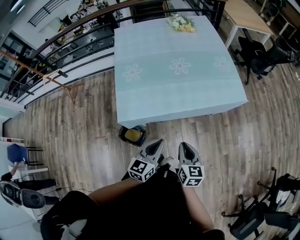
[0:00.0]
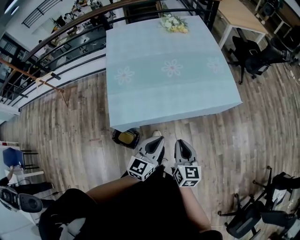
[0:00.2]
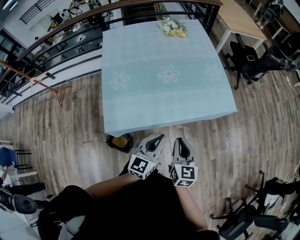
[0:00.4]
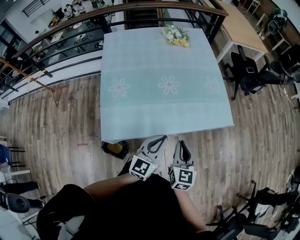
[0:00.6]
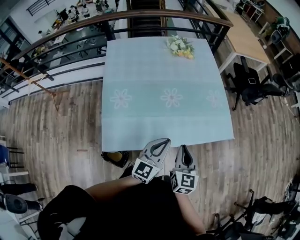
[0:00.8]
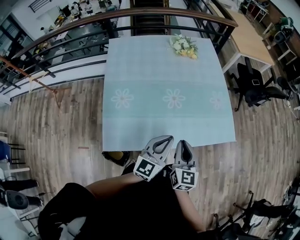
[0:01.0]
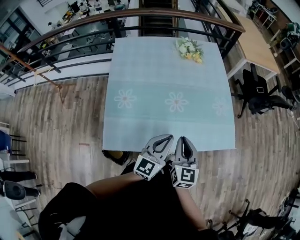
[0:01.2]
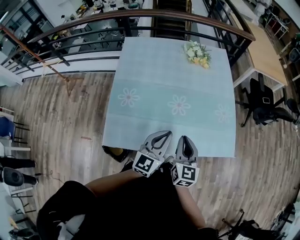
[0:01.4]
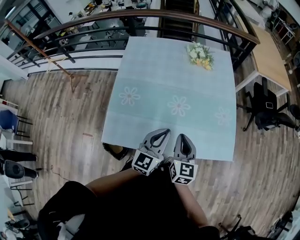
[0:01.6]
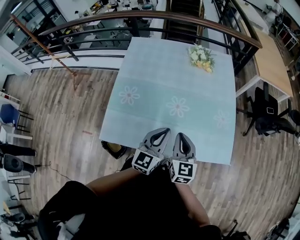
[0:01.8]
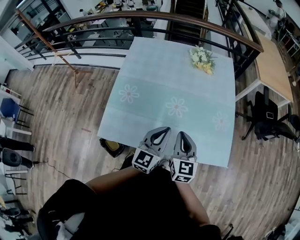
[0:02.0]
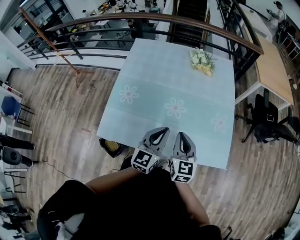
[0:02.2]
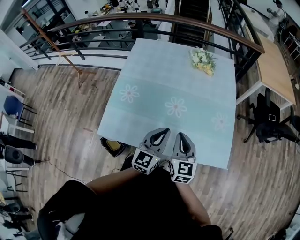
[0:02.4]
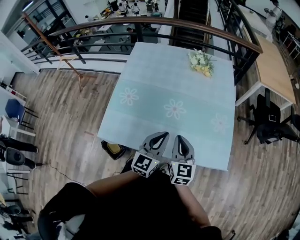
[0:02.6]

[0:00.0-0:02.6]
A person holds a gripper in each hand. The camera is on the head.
0.0 to 1.2 s: The grippers both shift forward by roughly 30 cm.
1.2 to 2.6 s: Both grippers move to the right, roughly 10 cm.

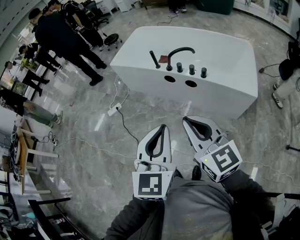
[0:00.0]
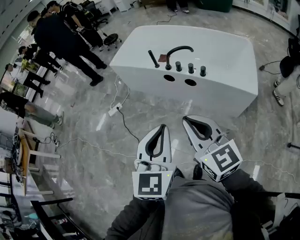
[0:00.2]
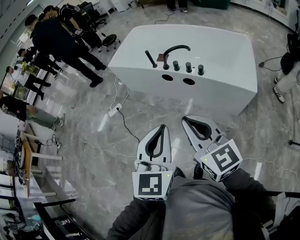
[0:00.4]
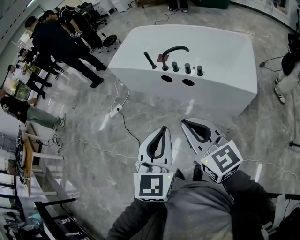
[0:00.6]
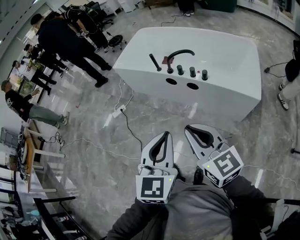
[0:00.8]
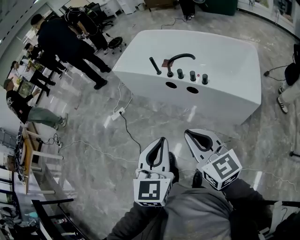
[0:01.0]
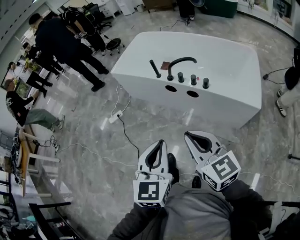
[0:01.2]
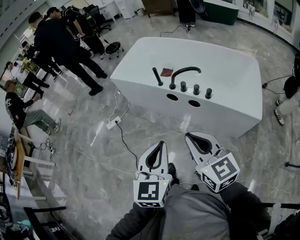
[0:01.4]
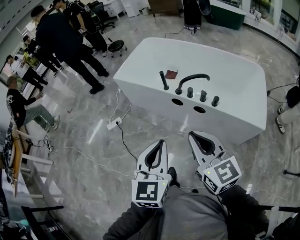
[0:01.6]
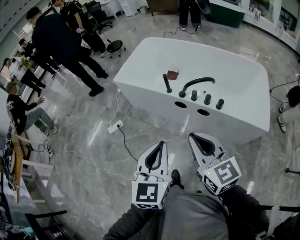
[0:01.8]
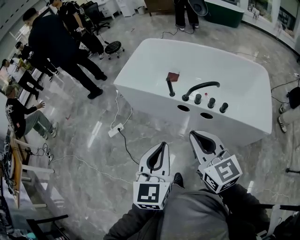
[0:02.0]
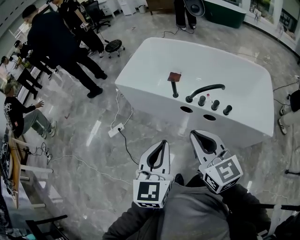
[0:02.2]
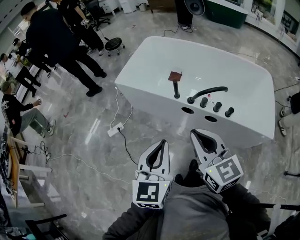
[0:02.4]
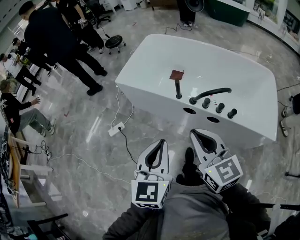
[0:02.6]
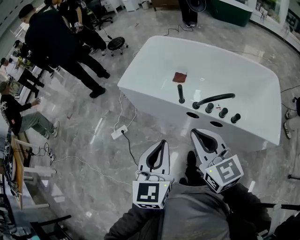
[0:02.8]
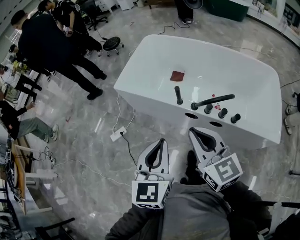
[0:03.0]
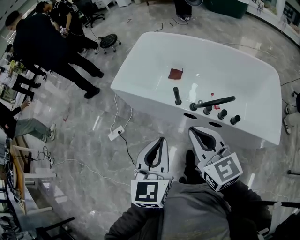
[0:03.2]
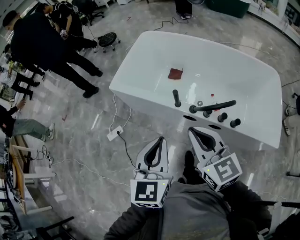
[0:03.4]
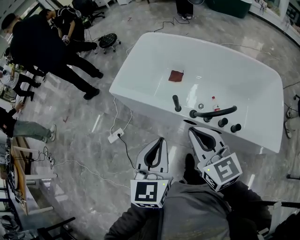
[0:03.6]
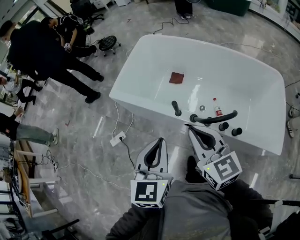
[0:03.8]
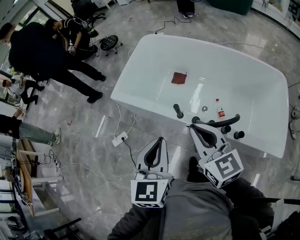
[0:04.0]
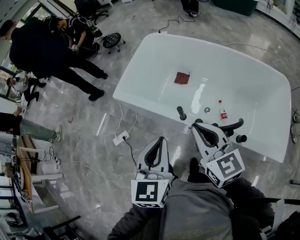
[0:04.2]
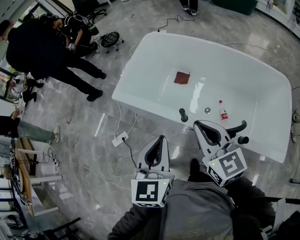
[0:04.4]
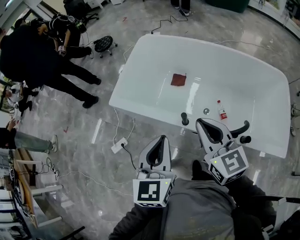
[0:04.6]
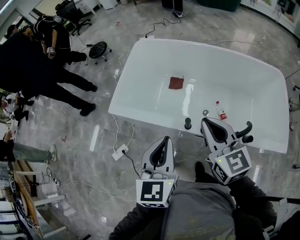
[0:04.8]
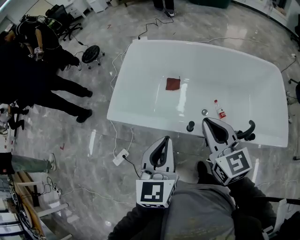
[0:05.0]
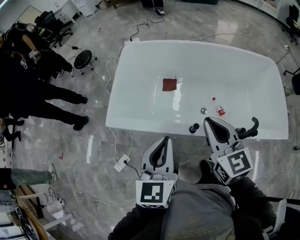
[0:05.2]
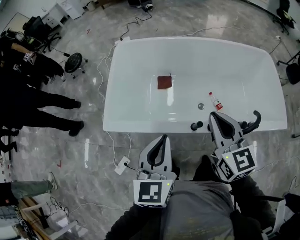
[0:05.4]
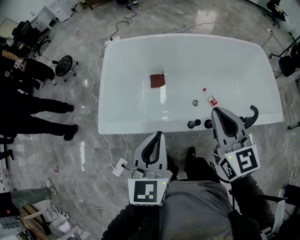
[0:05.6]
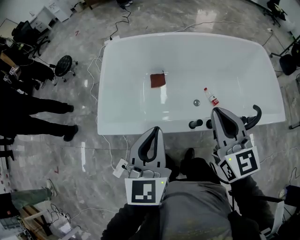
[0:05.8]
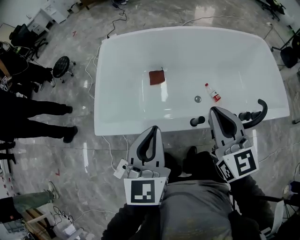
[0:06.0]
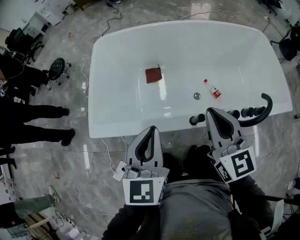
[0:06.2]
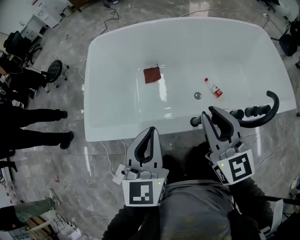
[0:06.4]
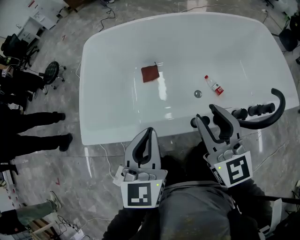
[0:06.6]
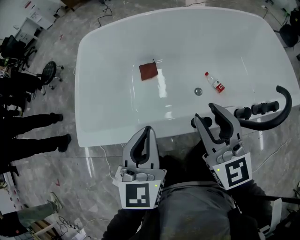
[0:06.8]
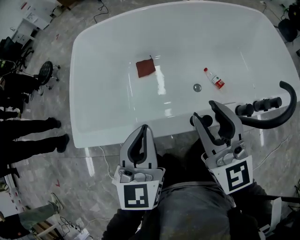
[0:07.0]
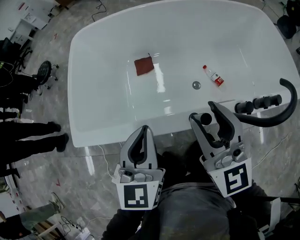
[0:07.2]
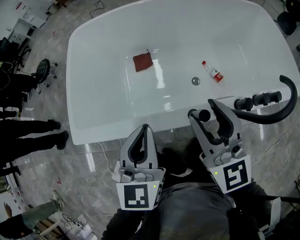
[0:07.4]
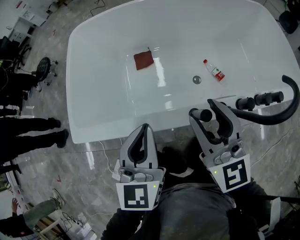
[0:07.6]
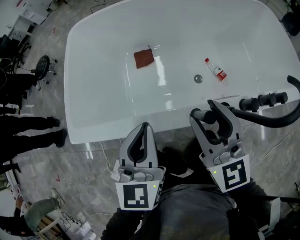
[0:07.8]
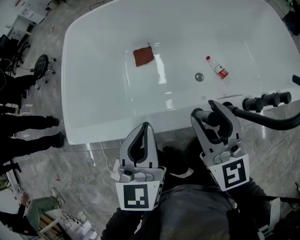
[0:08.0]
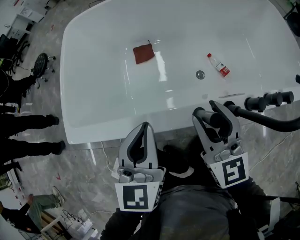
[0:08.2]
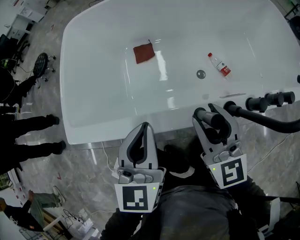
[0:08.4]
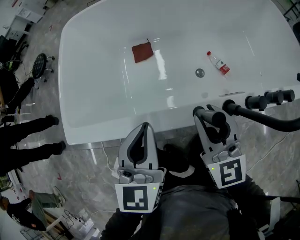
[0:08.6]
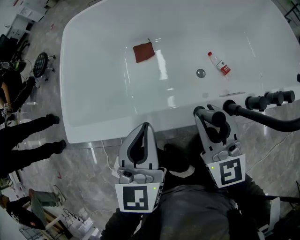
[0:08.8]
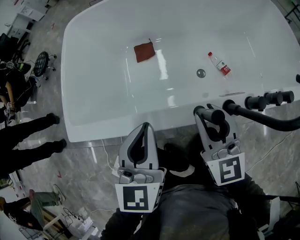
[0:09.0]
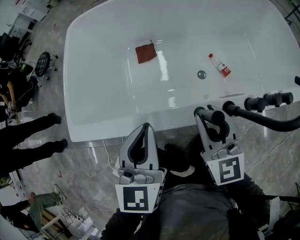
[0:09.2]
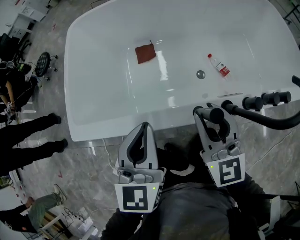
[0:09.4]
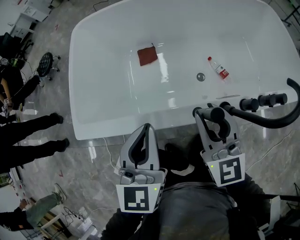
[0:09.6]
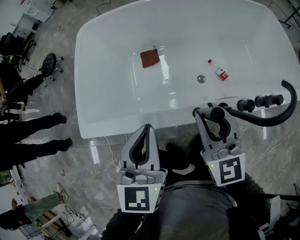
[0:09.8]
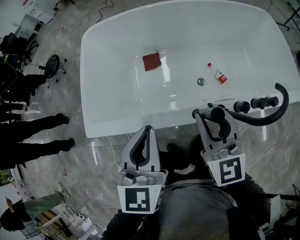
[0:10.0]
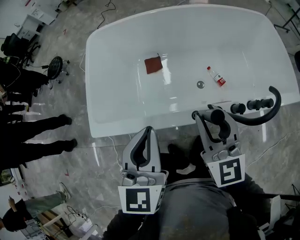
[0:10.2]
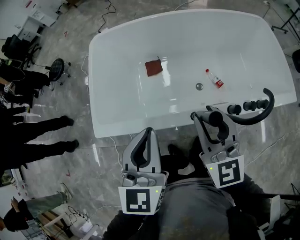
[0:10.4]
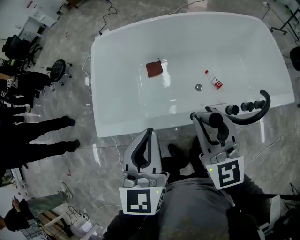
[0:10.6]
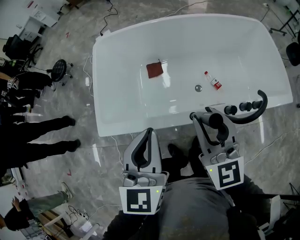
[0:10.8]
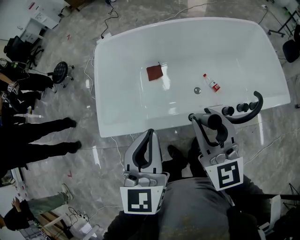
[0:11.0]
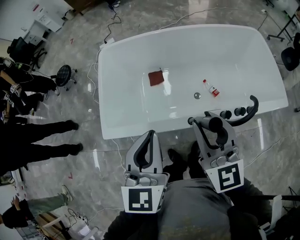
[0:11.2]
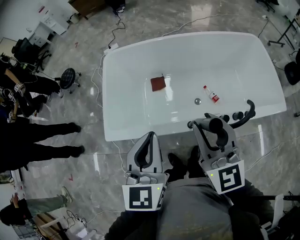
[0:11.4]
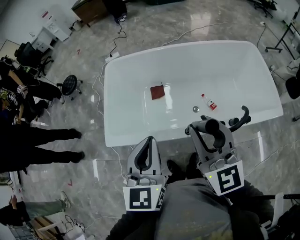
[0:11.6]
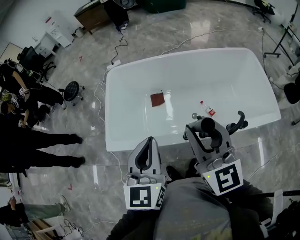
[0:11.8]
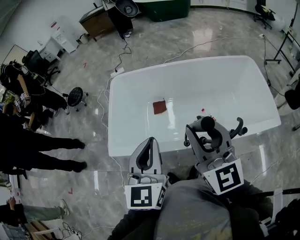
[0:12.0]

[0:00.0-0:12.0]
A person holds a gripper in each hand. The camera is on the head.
0.0 to 1.6 s: Both grippers move forward, some 15 cm.
1.6 to 3.0 s: The two grippers go approximately 25 cm forward.
3.0 to 4.4 s: The grippers both shift forward by approximately 20 cm.
4.4 to 6.0 s: The left gripper moves roughly 20 cm, and rotates about 30 degrees; the right gripper changes place by some 15 cm, and turns by about 40 degrees.
6.0 to 7.6 s: The grippers both shift downward by some 15 cm. The right gripper opens its fingers.
7.6 to 9.0 s: The right gripper is displaced downward by roughly 10 cm.
9.0 to 10.4 s: The two grippers go some 20 cm upward.
10.4 to 12.0 s: Both grippers move upward, some 20 cm.

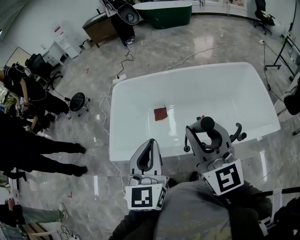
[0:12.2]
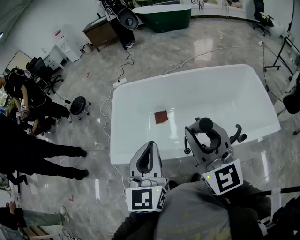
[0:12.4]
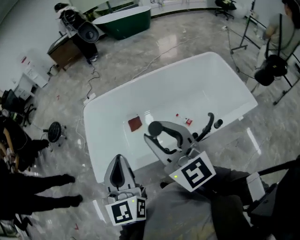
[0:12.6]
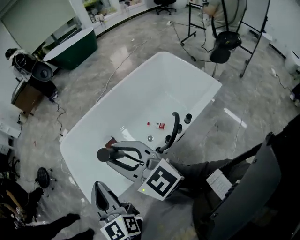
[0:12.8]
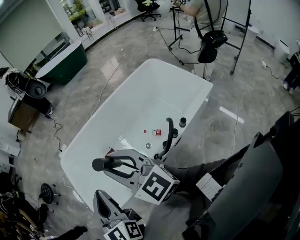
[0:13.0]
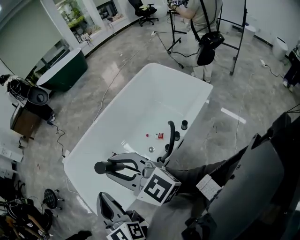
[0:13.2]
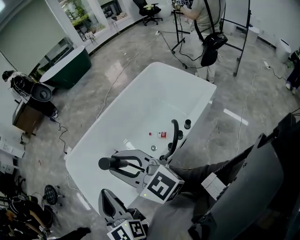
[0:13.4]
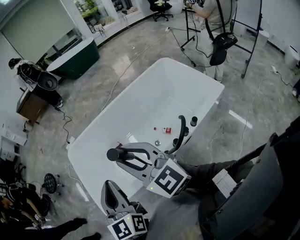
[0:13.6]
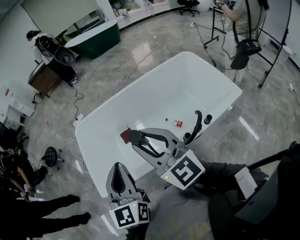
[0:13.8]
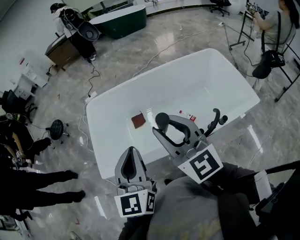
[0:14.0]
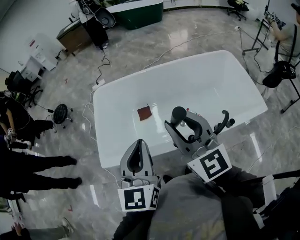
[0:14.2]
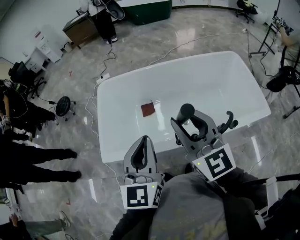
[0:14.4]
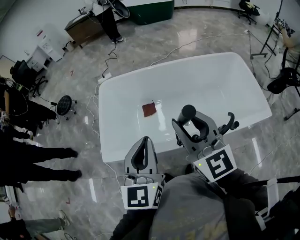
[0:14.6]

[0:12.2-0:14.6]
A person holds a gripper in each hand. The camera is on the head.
13.4 to 14.6 s: There are only small adjustments of the grippers.

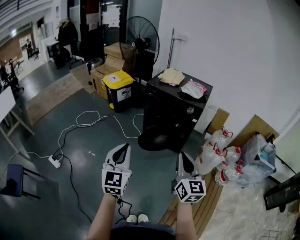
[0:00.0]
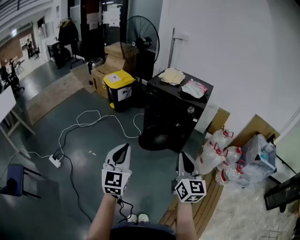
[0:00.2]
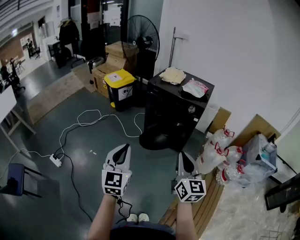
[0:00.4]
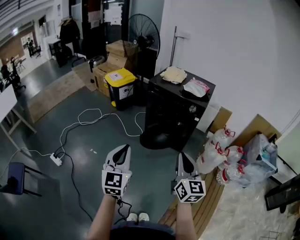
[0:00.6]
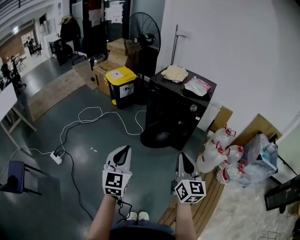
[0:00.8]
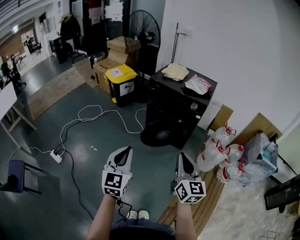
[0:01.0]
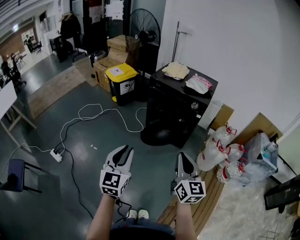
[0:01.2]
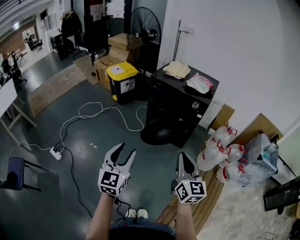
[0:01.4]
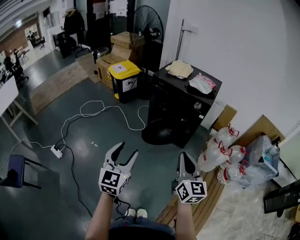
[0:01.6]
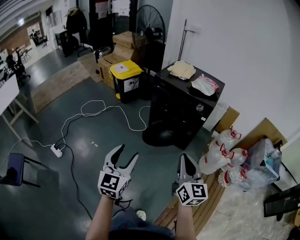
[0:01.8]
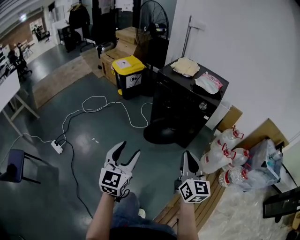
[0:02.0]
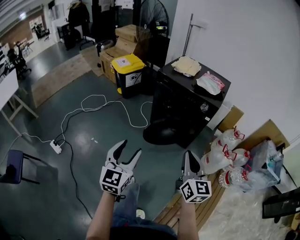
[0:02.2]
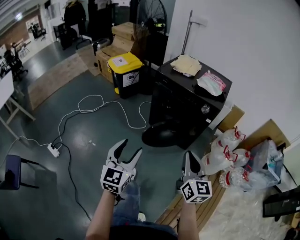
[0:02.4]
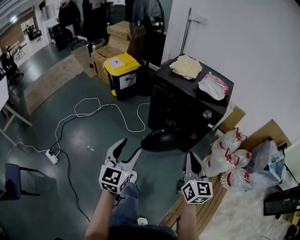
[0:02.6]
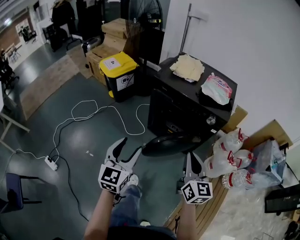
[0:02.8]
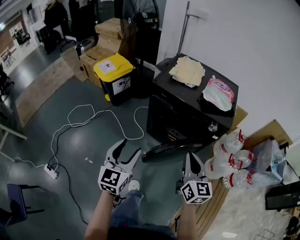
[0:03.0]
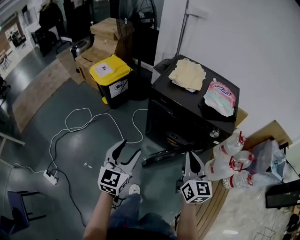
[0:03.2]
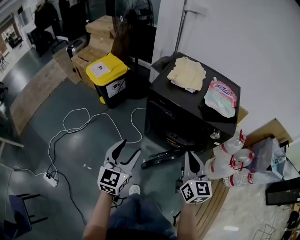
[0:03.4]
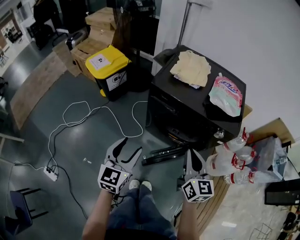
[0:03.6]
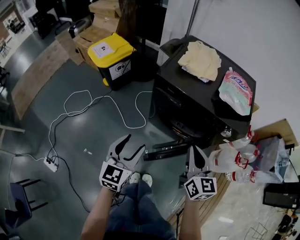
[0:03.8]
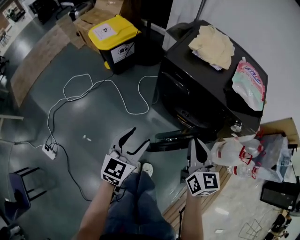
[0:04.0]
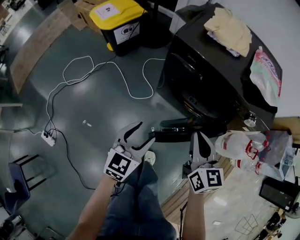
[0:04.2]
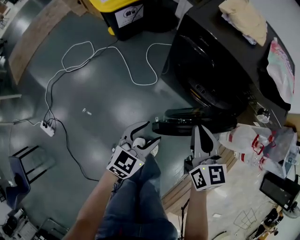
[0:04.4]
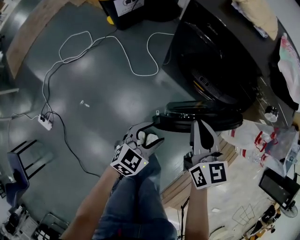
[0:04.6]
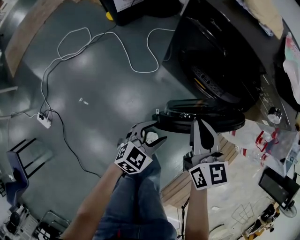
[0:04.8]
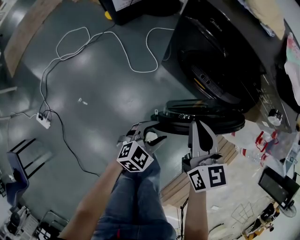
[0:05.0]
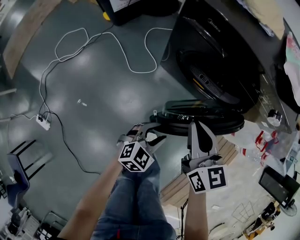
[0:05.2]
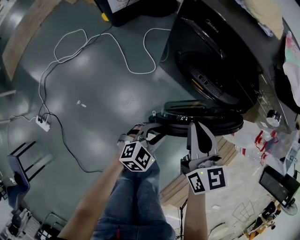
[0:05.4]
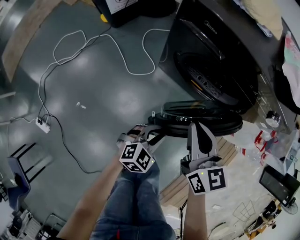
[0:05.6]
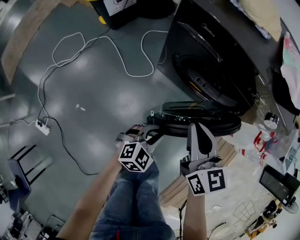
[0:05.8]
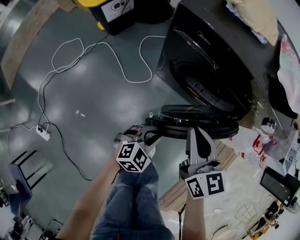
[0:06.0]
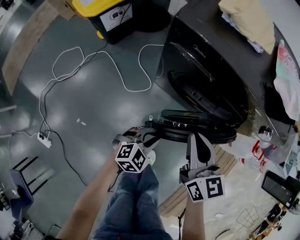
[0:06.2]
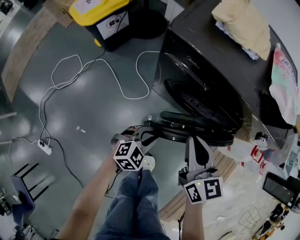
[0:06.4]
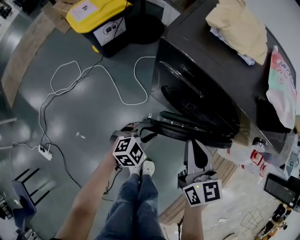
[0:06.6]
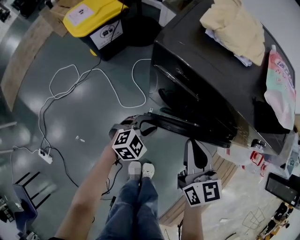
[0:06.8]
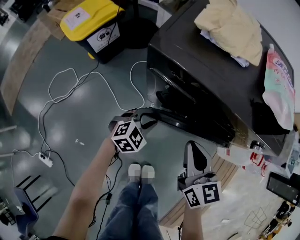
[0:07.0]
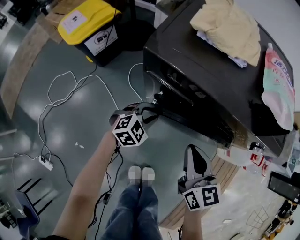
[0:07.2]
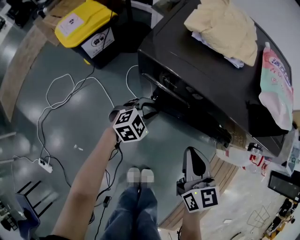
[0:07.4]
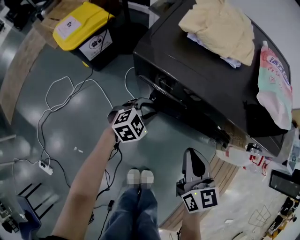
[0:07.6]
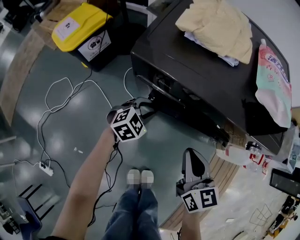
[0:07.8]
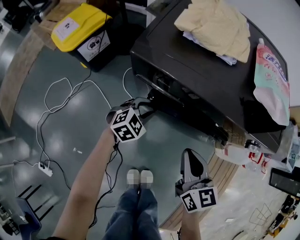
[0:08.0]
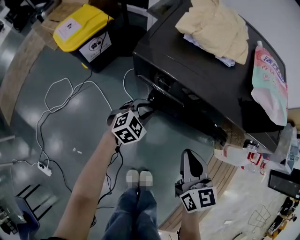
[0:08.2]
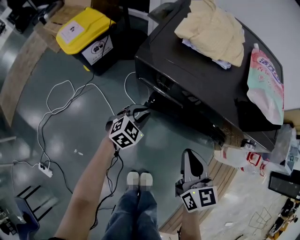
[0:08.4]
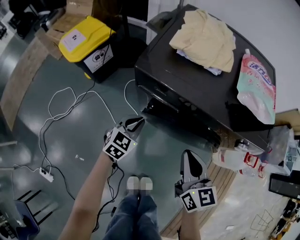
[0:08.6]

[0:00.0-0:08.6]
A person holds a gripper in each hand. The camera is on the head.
0.0 to 1.4 s: The left gripper opens.
1.4 to 2.8 s: The two grippers go approximately 30 cm forward.
2.8 to 4.4 s: The right gripper is displaced downward, forward and to the left by about 30 cm, while the left gripper is displaced downward and forward by approximately 30 cm, and turns by approximately 30 degrees.
4.4 to 5.8 s: The left gripper travels downward and to the right by some 15 cm, rotates about 30 degrees, and closes up.
5.8 to 7.2 s: The left gripper travels forward by some 25 cm. The right gripper is displaced forward by some 10 cm.
7.2 to 8.6 s: The right gripper ends up about 5 cm from where it was. Meanwhile the left gripper moves upward, roughly 5 cm, and changes its angle by approximately 20 degrees.
